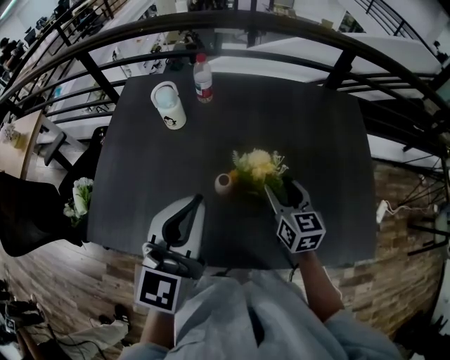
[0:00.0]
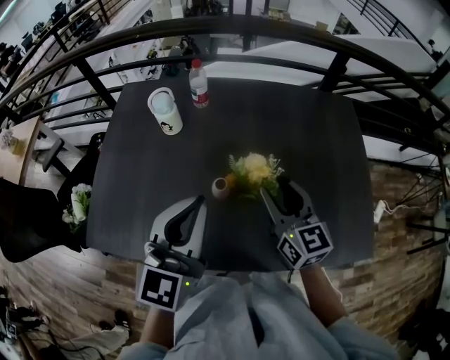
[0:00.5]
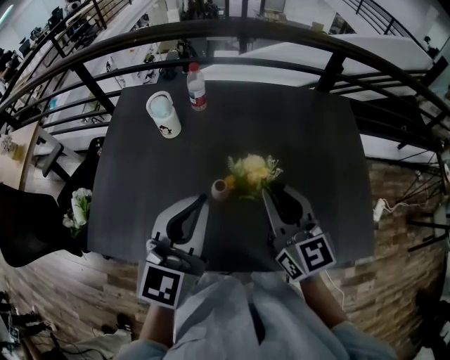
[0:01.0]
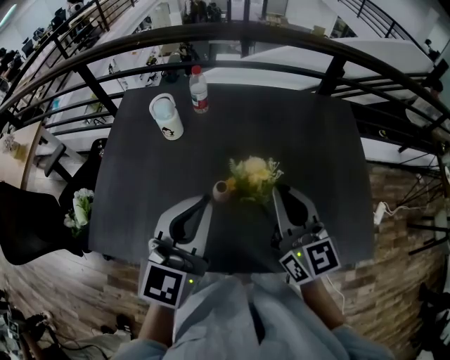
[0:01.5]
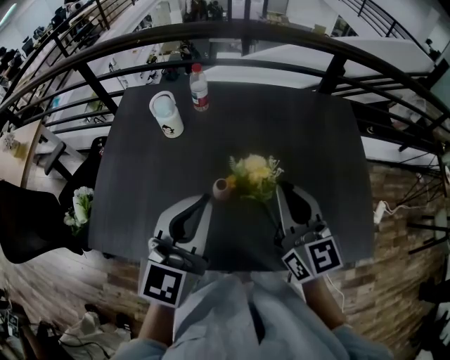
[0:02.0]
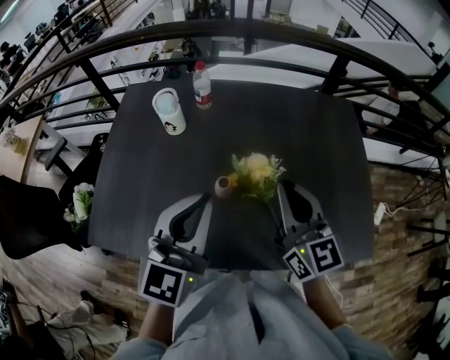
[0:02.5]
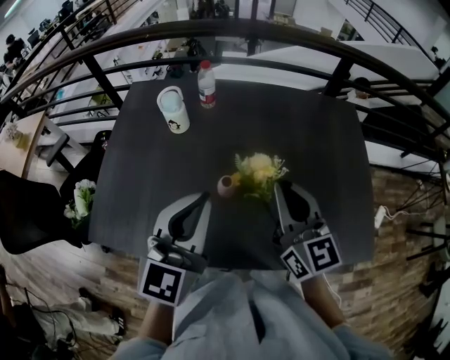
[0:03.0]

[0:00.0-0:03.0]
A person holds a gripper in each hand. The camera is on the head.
0:00.0 to 0:01.5: The right gripper travels upward by roughly 15 cm, turns by approximately 20 degrees, and closes its fingers.
0:01.5 to 0:03.0: The grippers make only small movements.

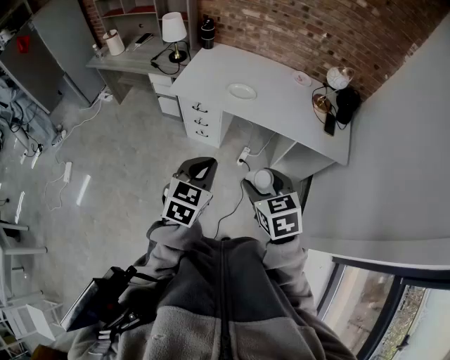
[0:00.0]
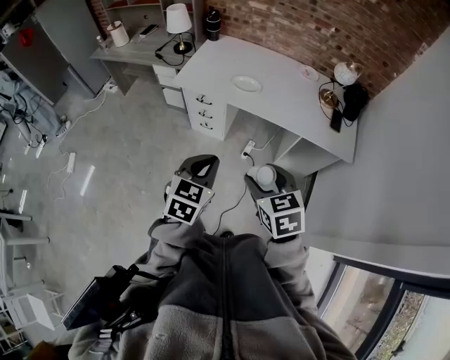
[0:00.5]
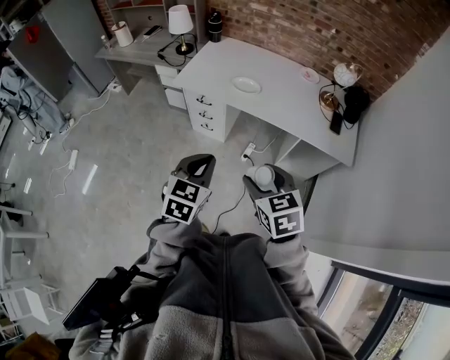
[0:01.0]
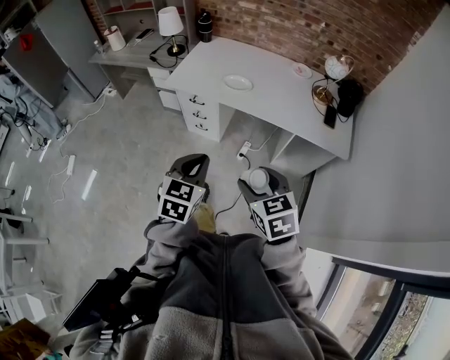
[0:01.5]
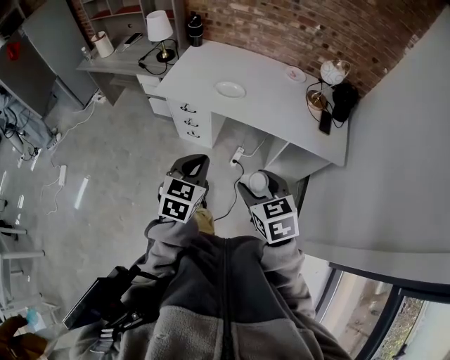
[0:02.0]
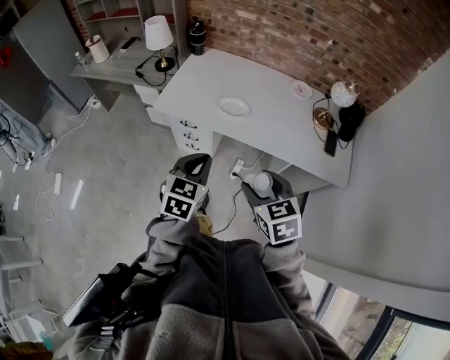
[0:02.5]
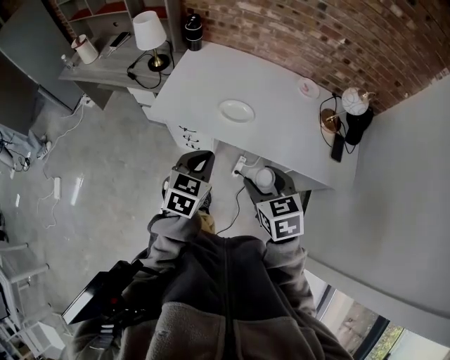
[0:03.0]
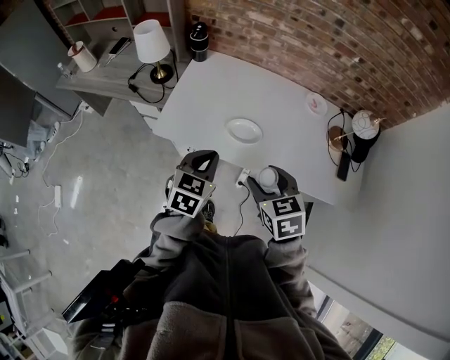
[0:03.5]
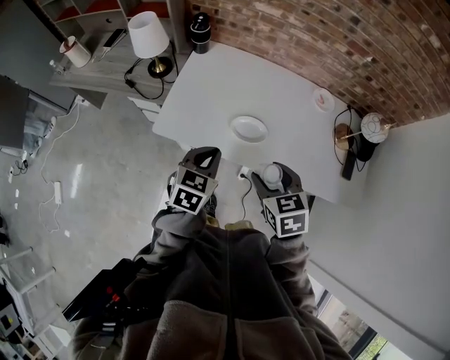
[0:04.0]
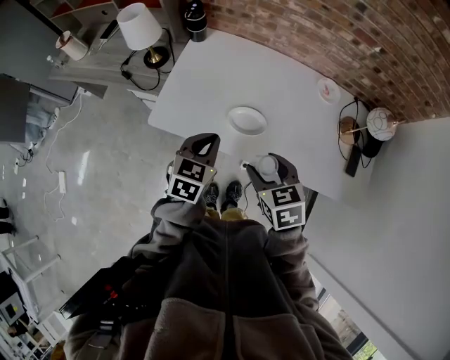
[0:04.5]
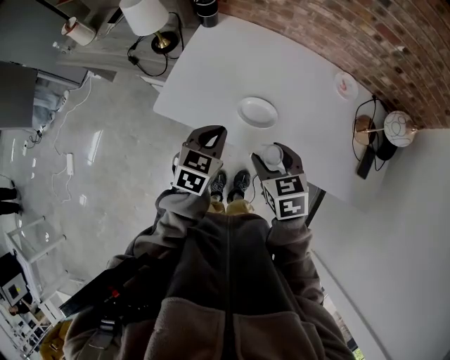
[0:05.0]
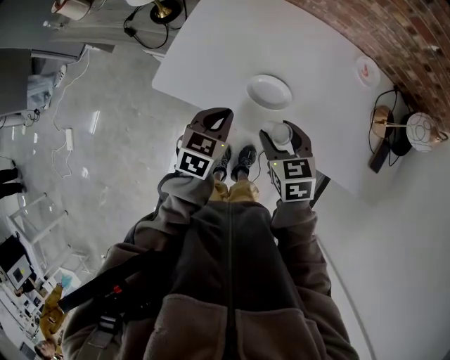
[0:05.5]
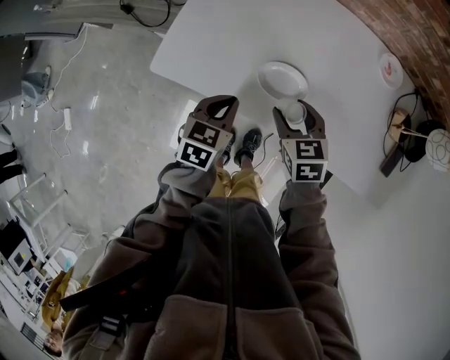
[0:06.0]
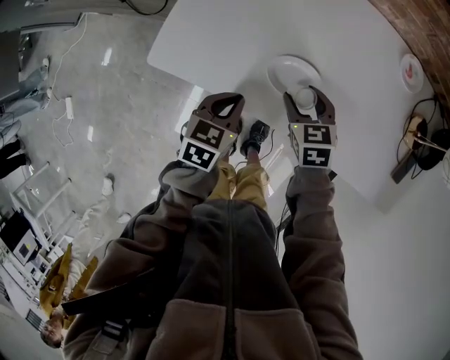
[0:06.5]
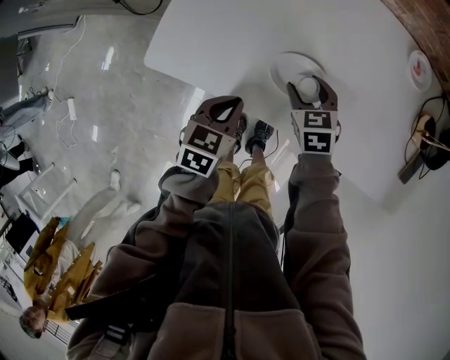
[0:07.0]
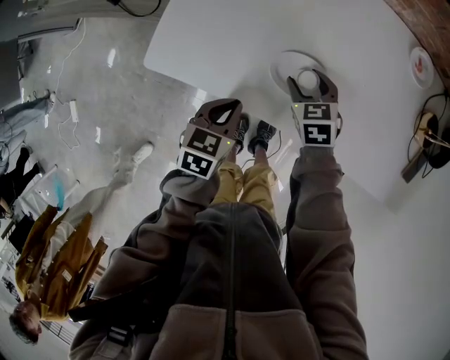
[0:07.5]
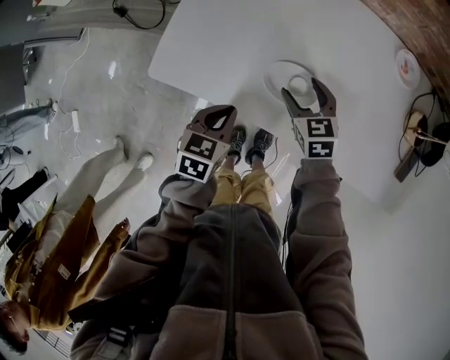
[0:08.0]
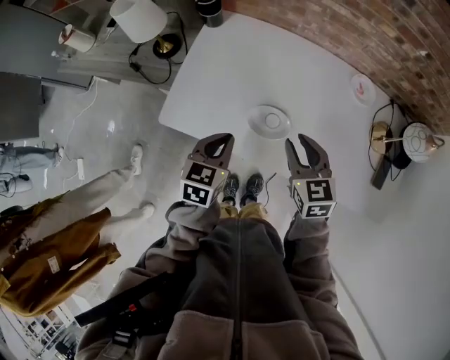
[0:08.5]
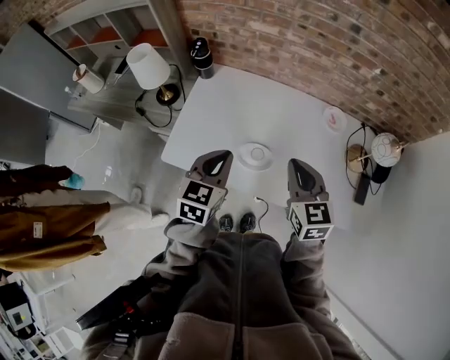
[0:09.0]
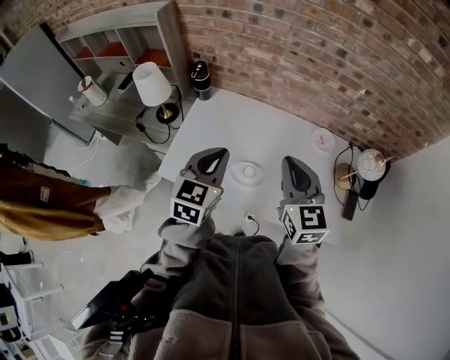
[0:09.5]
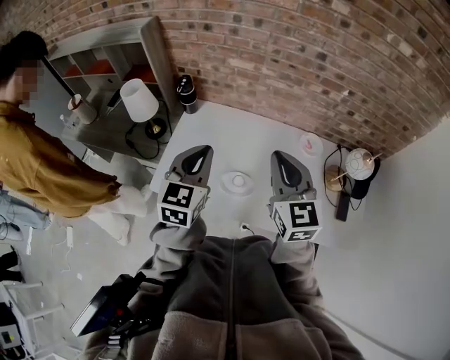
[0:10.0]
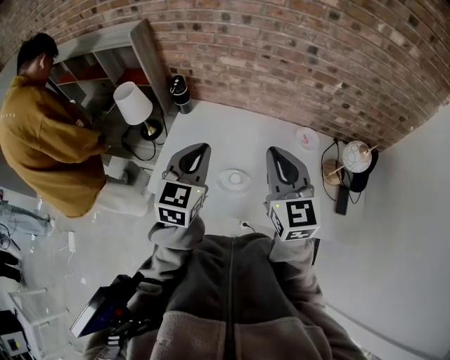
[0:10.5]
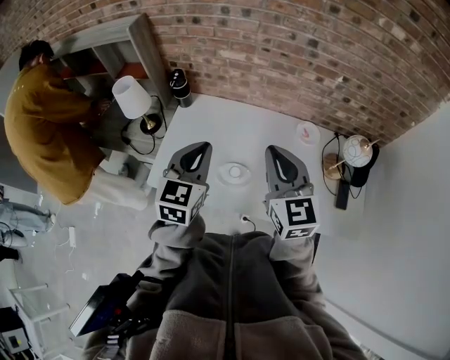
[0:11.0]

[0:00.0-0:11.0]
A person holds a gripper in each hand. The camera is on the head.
0:00.0 to 0:02.0: The left gripper travels forward by roughly 5 cm, while the right gripper goes approximately 5 cm to the right.
0:02.0 to 0:03.5: Both grippers move forward, approximately 35 cm.
0:03.5 to 0:05.5: The two grippers go approximately 15 cm downward and forward.
0:05.5 to 0:07.5: The left gripper heads downward, covering about 10 cm; the right gripper travels downward and forward by about 20 cm.
0:07.5 to 0:09.0: Both grippers move upward, about 30 cm. The left gripper rotates some 30 degrees, while the right gripper angles its fingers upward, by about 30 degrees, and closes its fingers.
0:09.0 to 0:11.0: Both grippers move upward, about 10 cm.

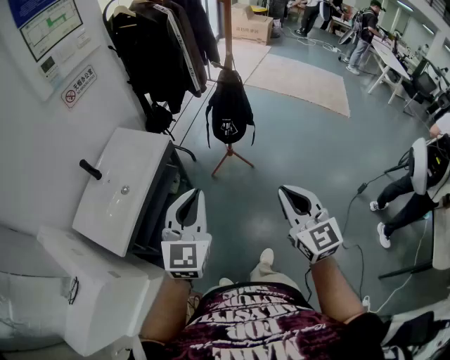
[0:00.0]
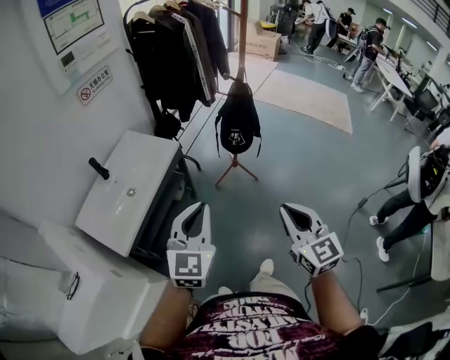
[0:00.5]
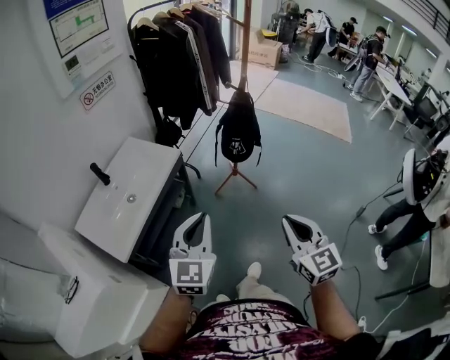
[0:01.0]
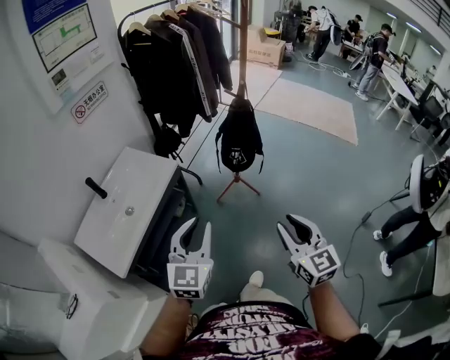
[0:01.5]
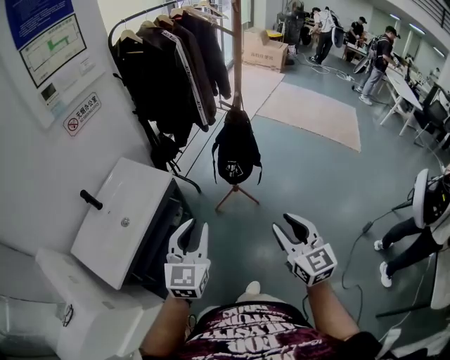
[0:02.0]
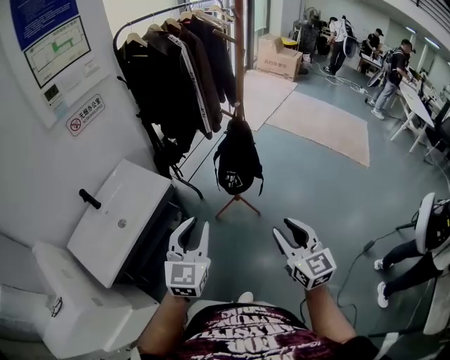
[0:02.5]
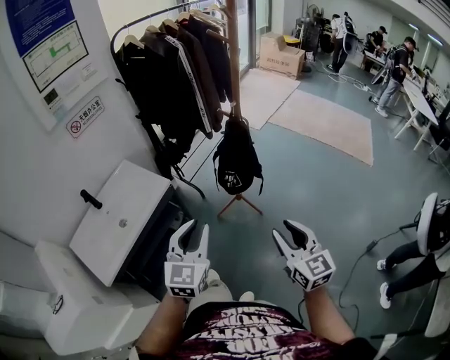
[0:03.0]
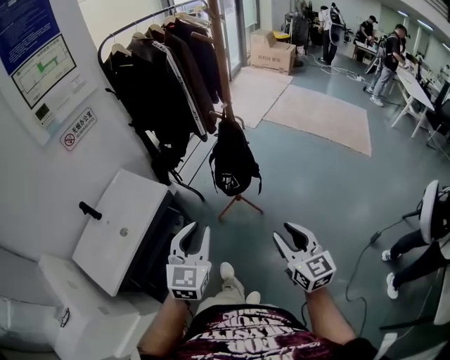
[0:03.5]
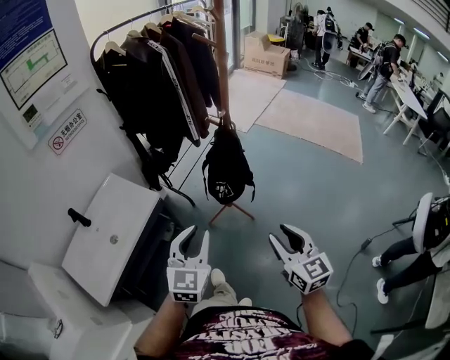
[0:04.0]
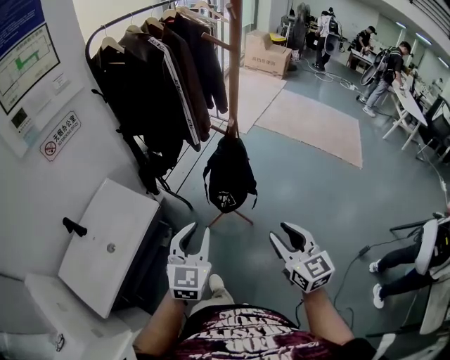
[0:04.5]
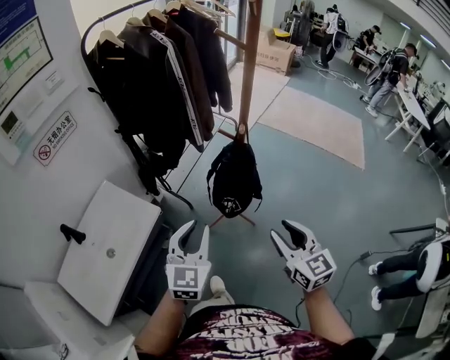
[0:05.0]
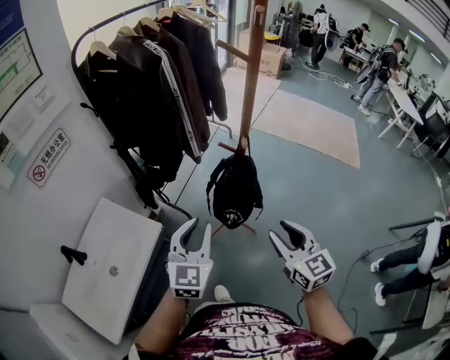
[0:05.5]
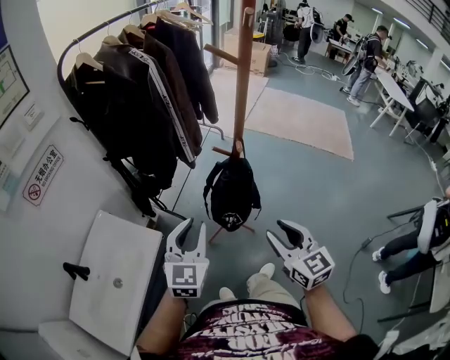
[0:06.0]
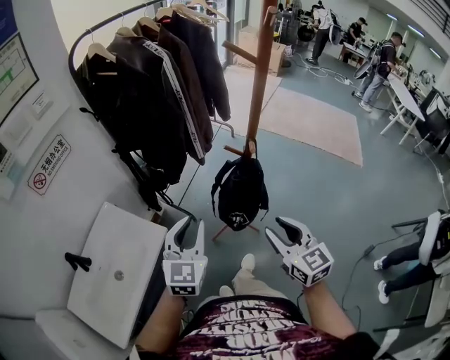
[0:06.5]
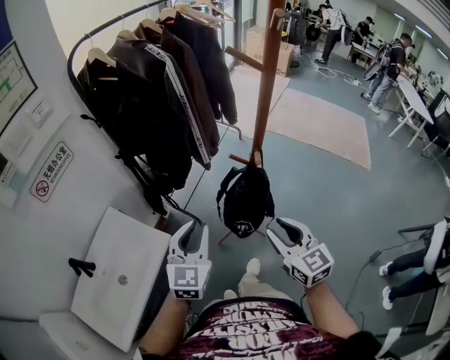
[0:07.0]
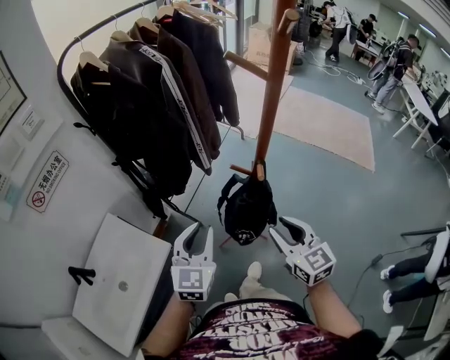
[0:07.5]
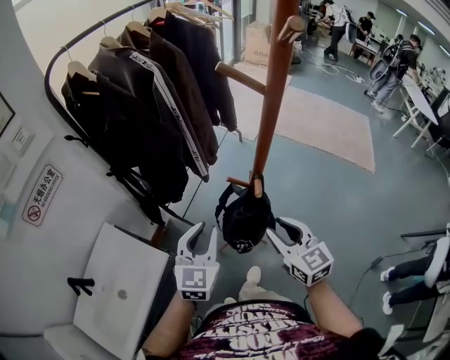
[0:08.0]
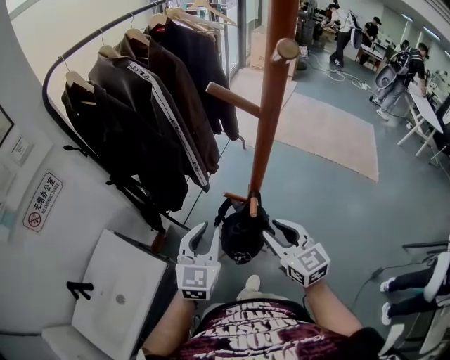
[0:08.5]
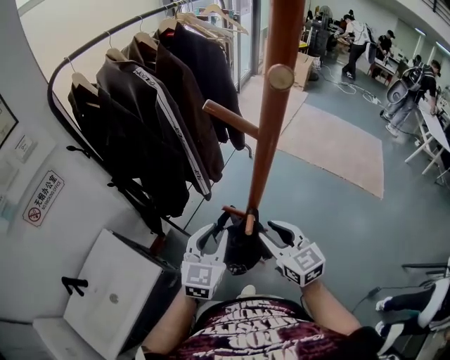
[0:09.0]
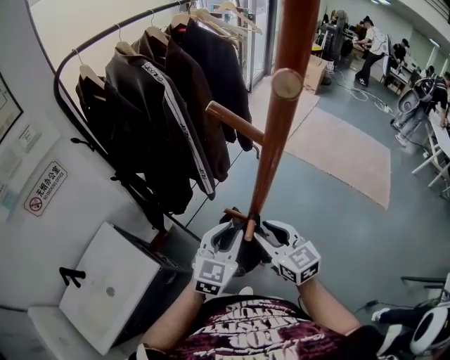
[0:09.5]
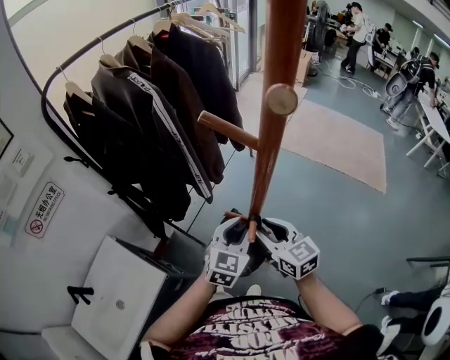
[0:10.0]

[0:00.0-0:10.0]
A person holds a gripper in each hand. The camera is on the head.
0:00.0 to 0:02.0: The two grippers go some 10 cm forward. The right gripper opens up.
0:02.0 to 0:04.0: The grippers both shift forward and to the right by roughly 10 cm.
0:04.0 to 0:06.0: The two grippers go approximately 20 cm forward.
0:06.0 to 0:08.0: Both grippers move forward, approximately 15 cm.
0:08.0 to 0:10.0: The left gripper moves to the right and forward, about 20 cm. Meanwhile the right gripper moves forward, about 15 cm.

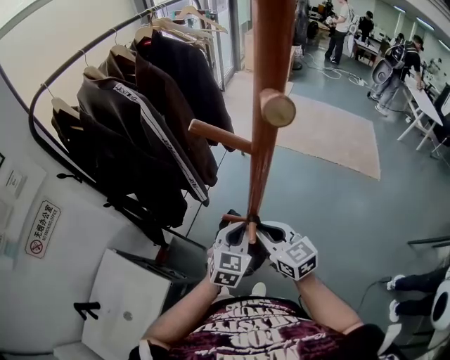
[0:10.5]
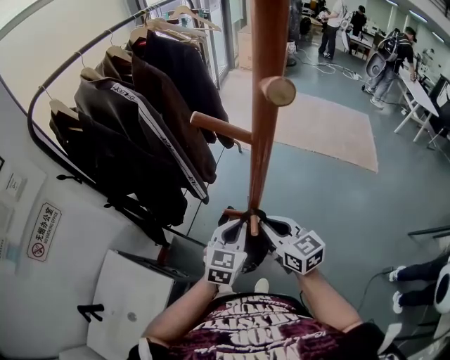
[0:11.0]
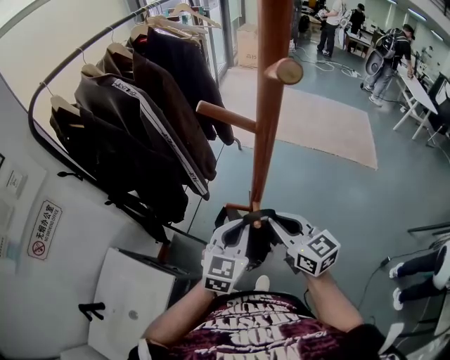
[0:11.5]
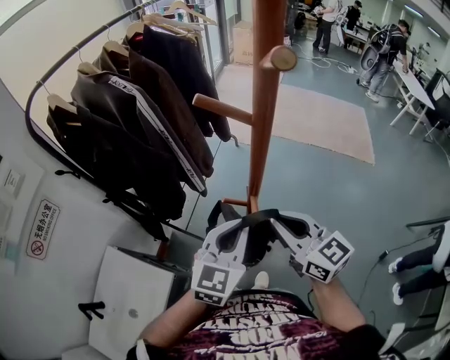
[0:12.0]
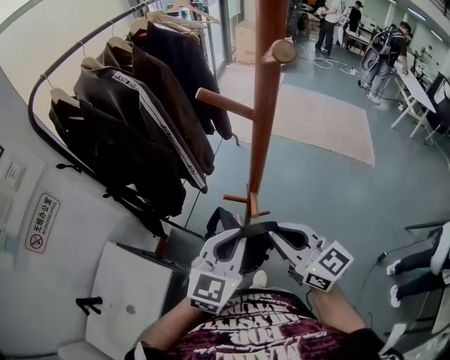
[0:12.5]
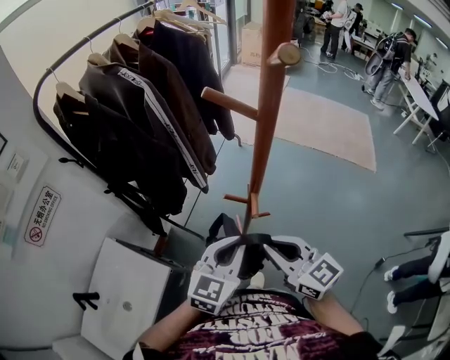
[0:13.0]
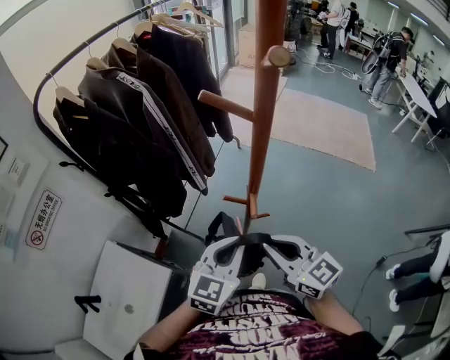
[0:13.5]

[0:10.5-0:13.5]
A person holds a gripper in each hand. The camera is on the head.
0:10.5 to 0:12.0: The grippers both shift upward and backward by approximately 15 cm.
0:12.0 to 0:13.5: The left gripper moves about 5 cm; the right gripper travels backward by roughly 5 cm.
